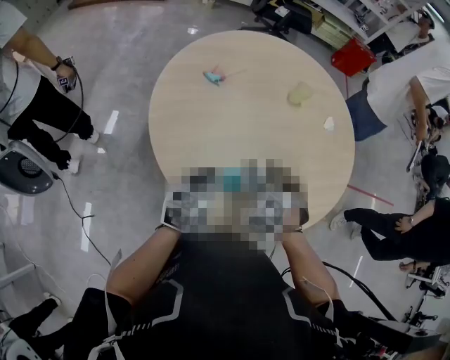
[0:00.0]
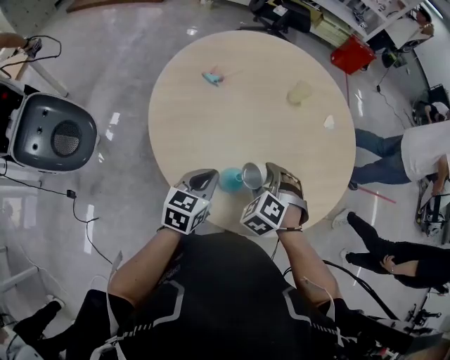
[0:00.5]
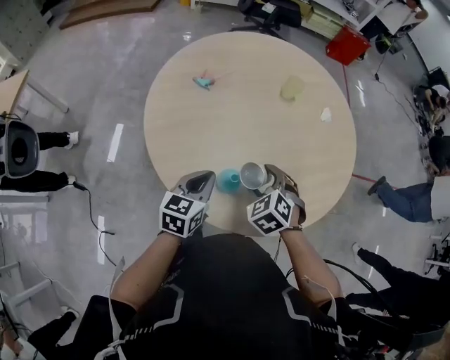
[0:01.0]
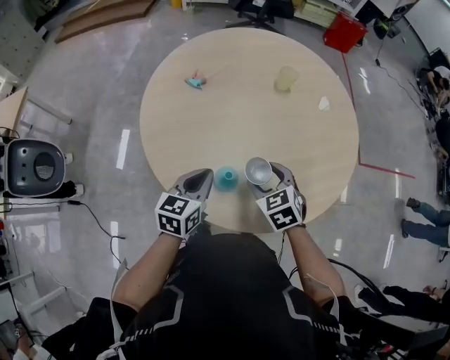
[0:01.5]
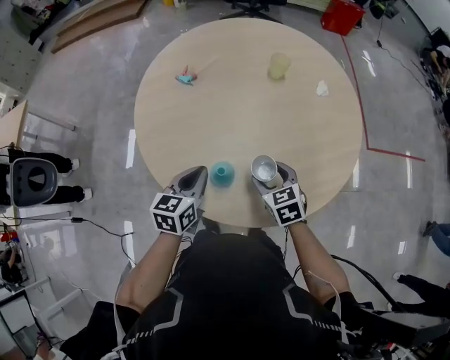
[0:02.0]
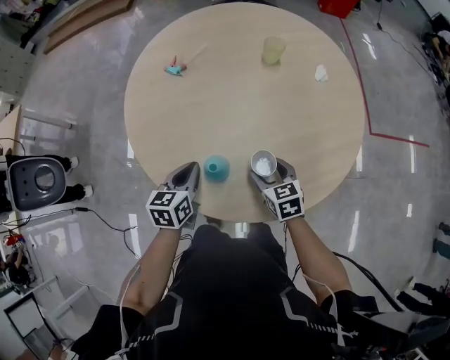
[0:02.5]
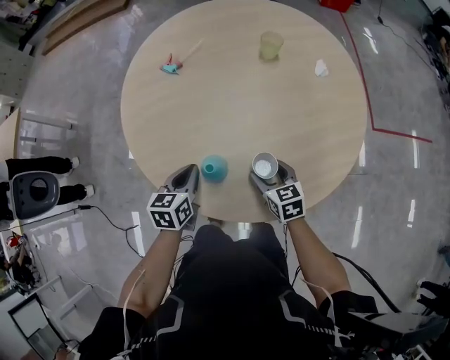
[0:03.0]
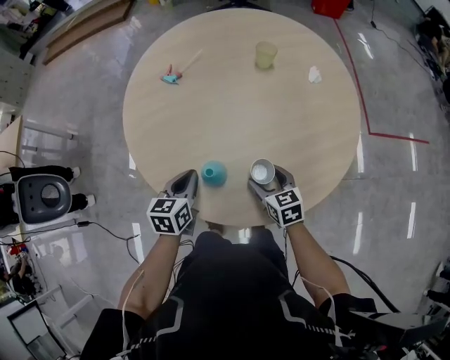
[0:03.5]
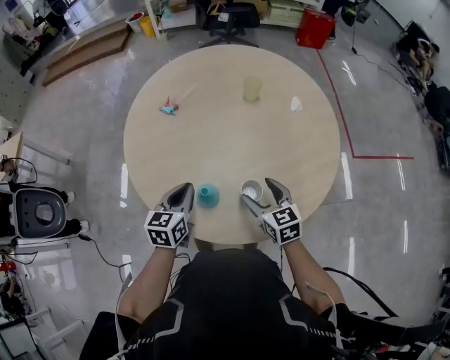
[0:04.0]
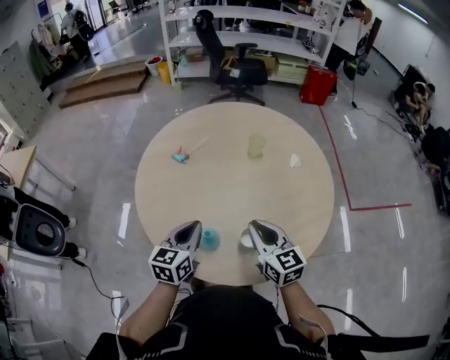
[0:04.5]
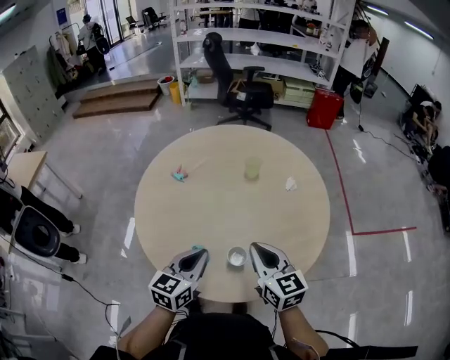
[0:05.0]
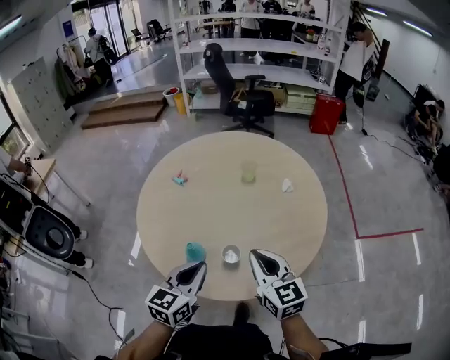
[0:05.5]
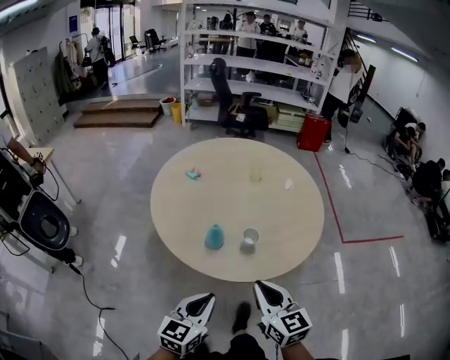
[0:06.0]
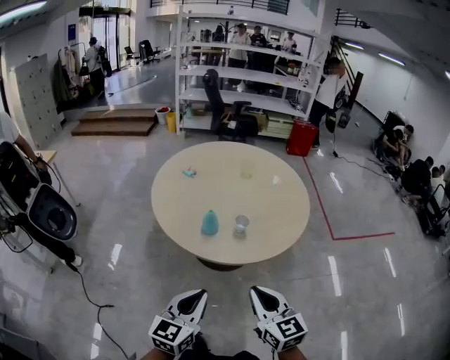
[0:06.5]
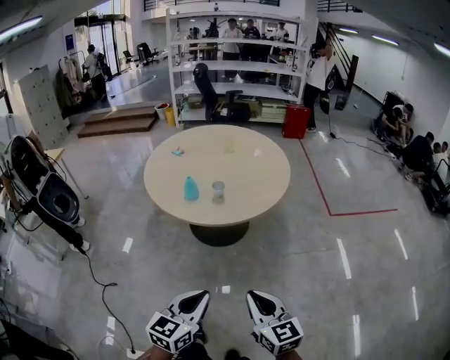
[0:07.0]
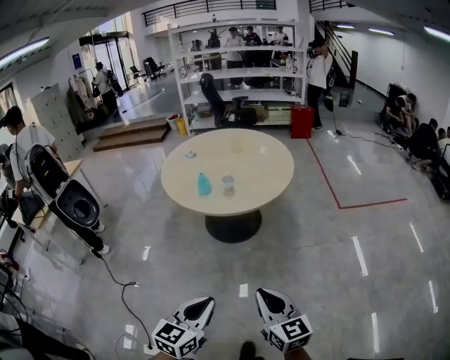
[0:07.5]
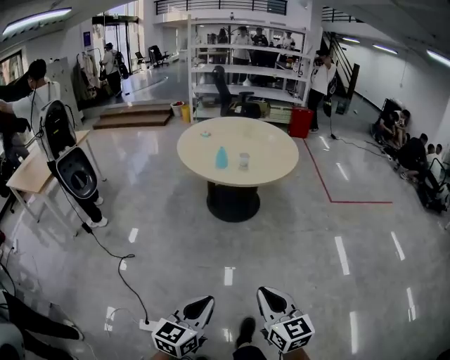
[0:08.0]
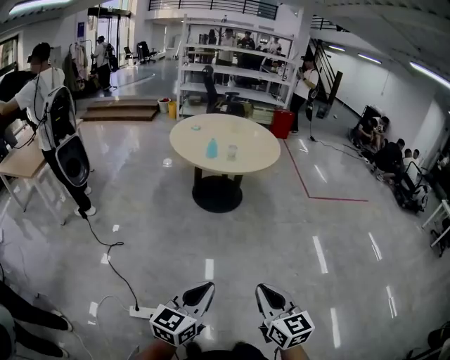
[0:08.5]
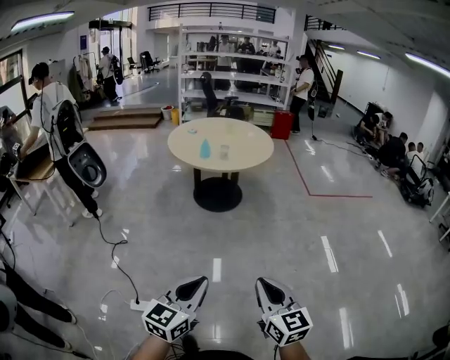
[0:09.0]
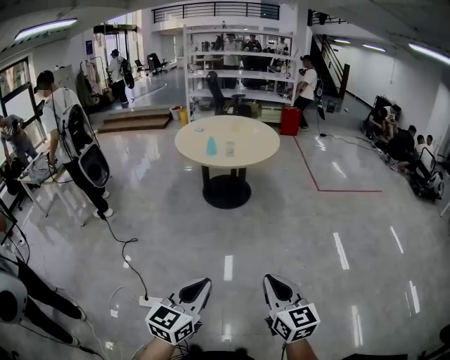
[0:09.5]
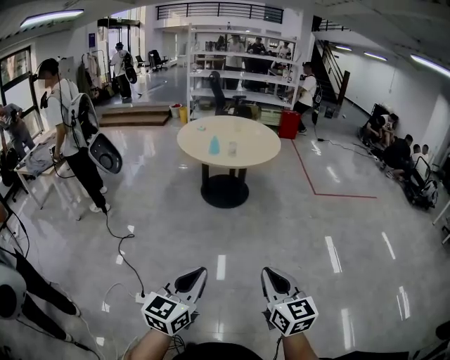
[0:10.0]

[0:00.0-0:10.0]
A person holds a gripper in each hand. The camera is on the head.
0:00.0 to 0:02.0: The right gripper is displaced to the right by about 5 cm, and rotates around the line of its fingers by approximately 50 degrees, clockwise from behind.
0:04.0 to 0:06.0: The left gripper moves backward, roughly 30 cm. The right gripper travels backward and upward by approximately 25 cm, and closes up.
0:06.0 to 0:08.0: The two grippers travel together, backward, approximately 60 cm.
0:08.0 to 0:10.0: The two grippers go roughly 25 cm backward and upward.

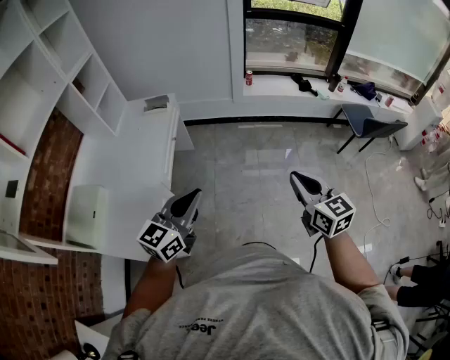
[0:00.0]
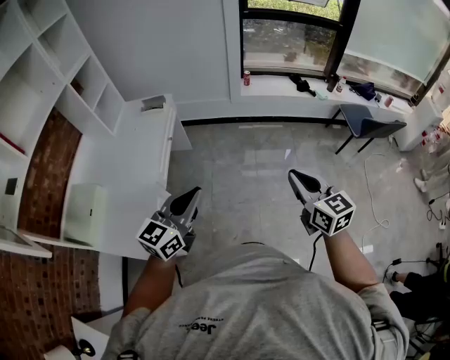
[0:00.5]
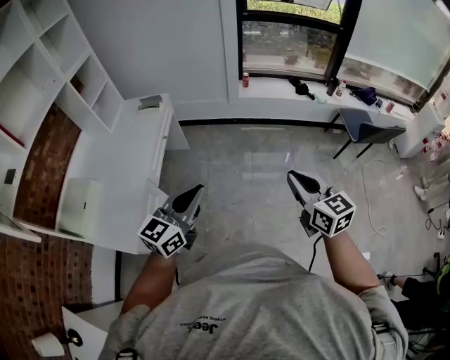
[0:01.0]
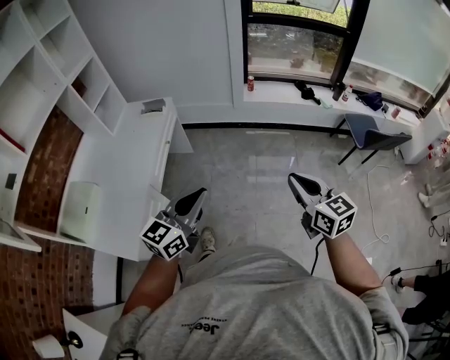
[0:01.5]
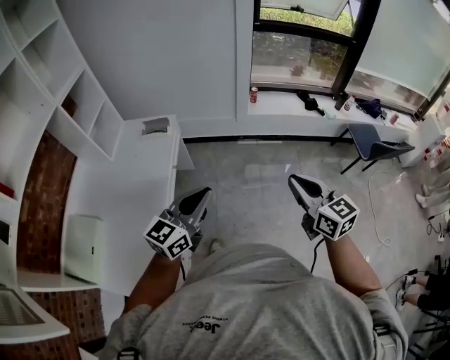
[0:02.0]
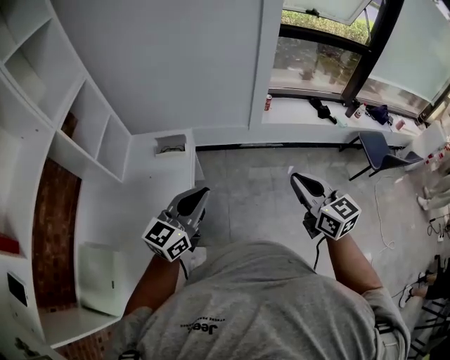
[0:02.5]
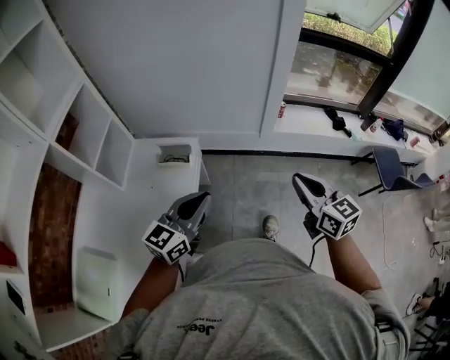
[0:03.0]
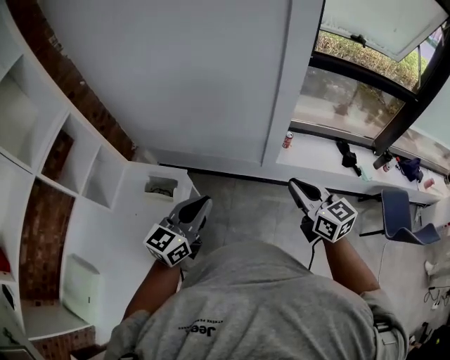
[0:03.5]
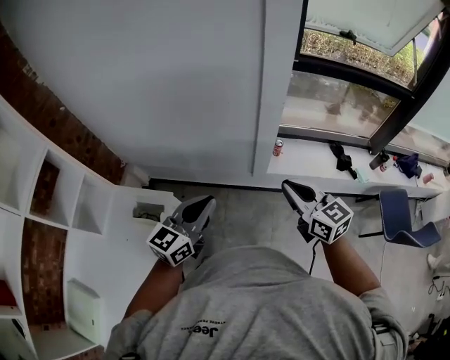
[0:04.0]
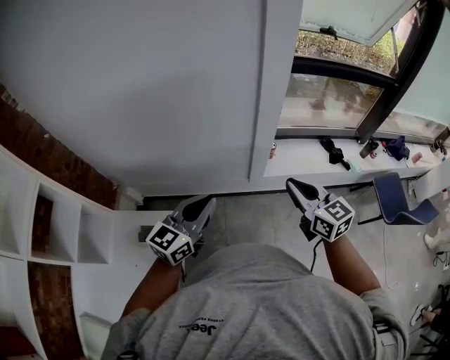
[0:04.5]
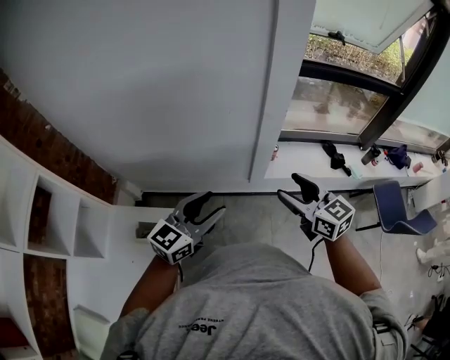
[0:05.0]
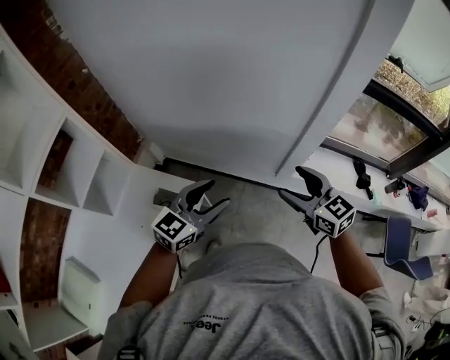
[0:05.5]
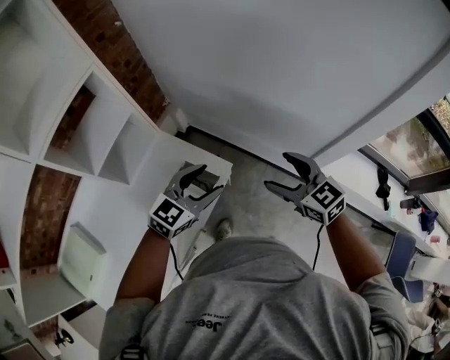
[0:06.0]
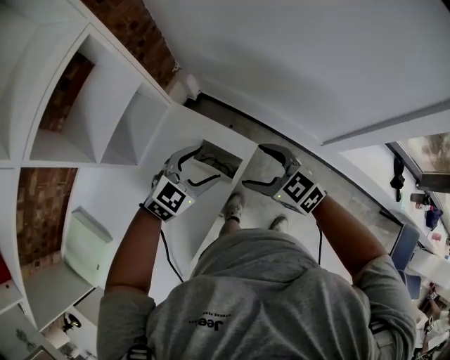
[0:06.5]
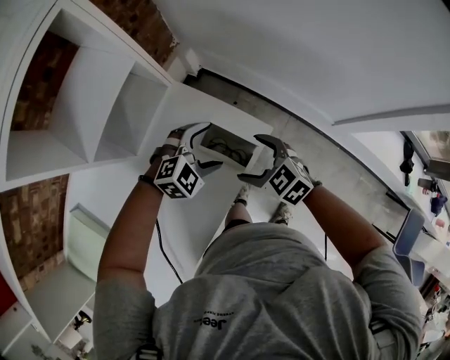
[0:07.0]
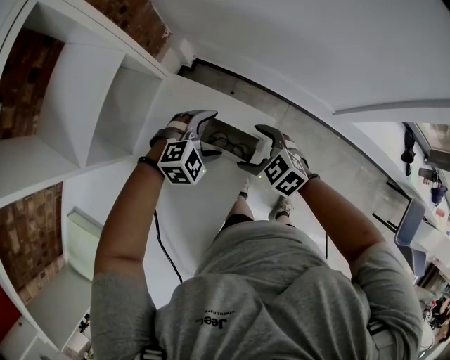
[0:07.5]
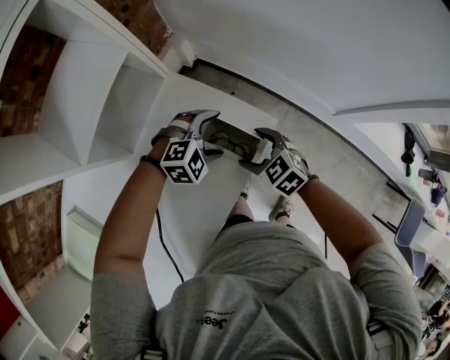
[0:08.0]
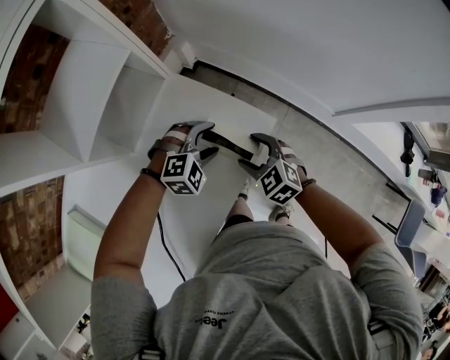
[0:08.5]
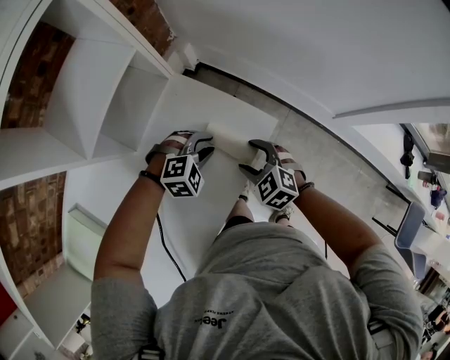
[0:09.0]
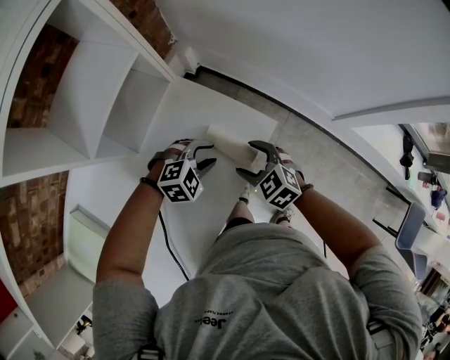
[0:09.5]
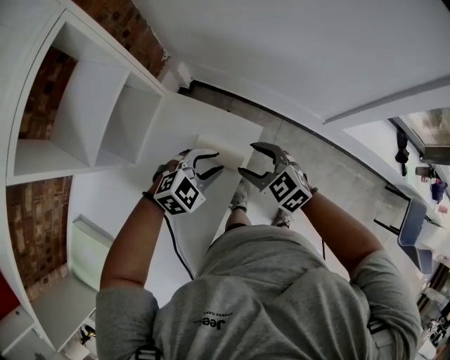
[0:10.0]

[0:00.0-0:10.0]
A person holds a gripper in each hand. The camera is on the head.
0:00.0 to 0:02.0: The grippers both shift forward by about 15 cm.
0:02.0 to 0:04.0: The pair of grippers is taken forward, roughly 50 cm.
0:04.0 to 0:06.0: The right gripper ends up approximately 30 cm from where it was, swivels roughly 40 degrees, and opens its fingers. The left gripper ends up some 25 cm from where it was, turns by some 20 degrees, and opens.
0:06.0 to 0:08.0: Both grippers move downward and to the left, about 30 cm. The left gripper points its fingers approximately 30 degrees further downward, and opens its fingers, while the right gripper changes its angle by some 30 degrees.
0:08.0 to 0:10.0: The left gripper goes roughly 10 cm upward and backward, and closes its fingers; the right gripper heads upward, covering some 10 cm.

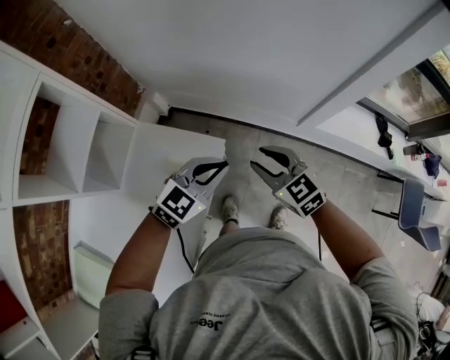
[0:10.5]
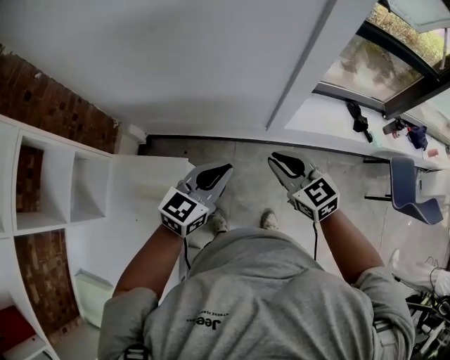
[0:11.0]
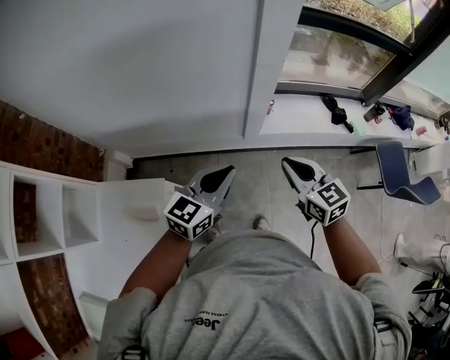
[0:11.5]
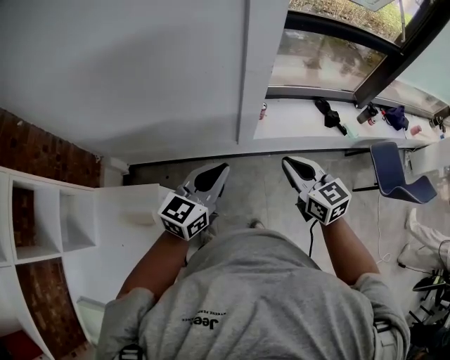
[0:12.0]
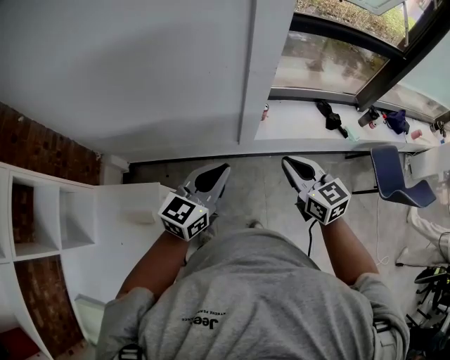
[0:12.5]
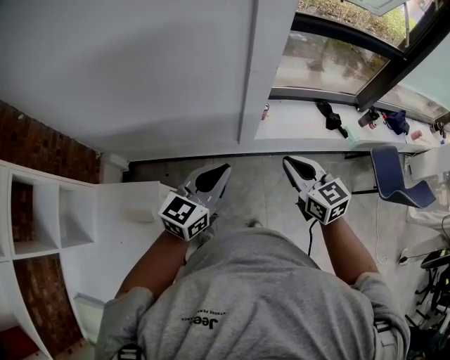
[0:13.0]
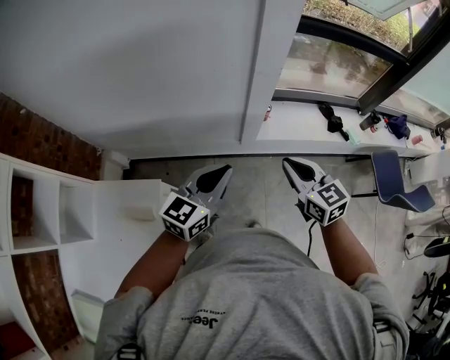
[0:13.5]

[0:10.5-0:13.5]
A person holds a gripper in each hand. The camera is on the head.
0:10.5 to 0:12.0: Both grippers move to the right, about 30 cm. The right gripper changes its angle by about 40 degrees. The left gripper rotates roughly 20 degrees.
0:12.0 to 0:13.5: The grippers move only a little.

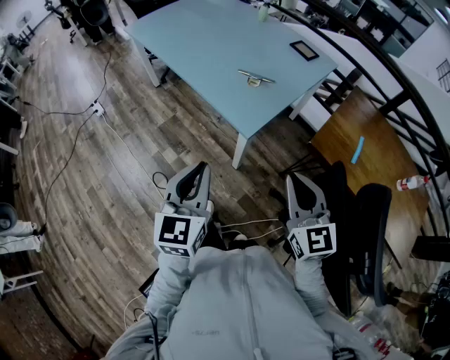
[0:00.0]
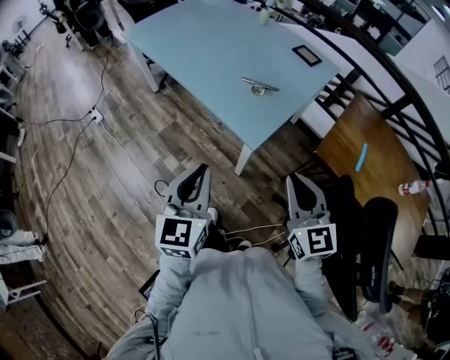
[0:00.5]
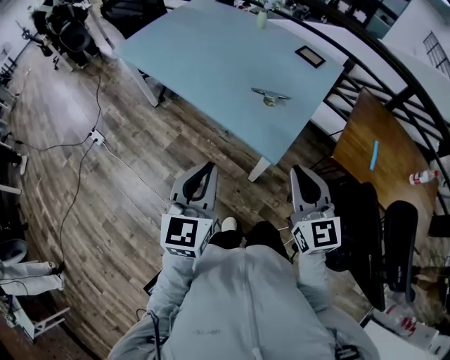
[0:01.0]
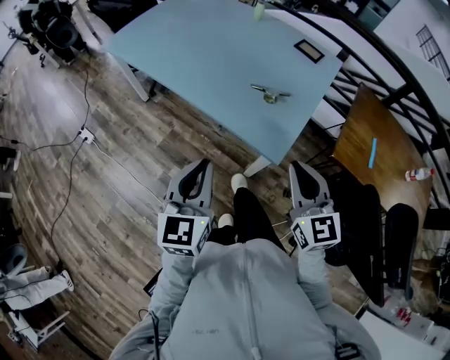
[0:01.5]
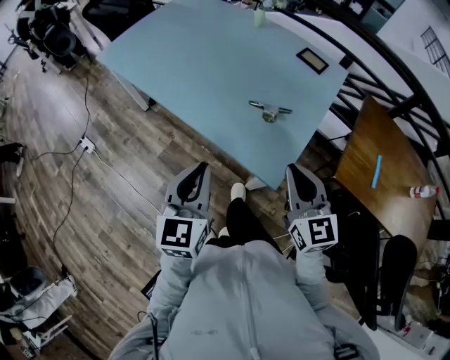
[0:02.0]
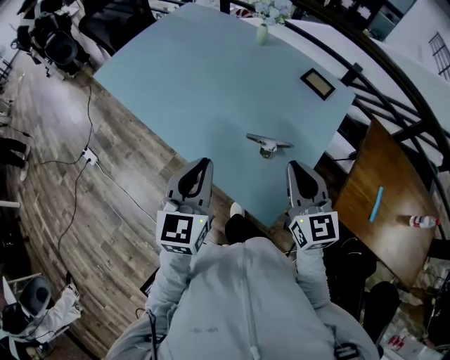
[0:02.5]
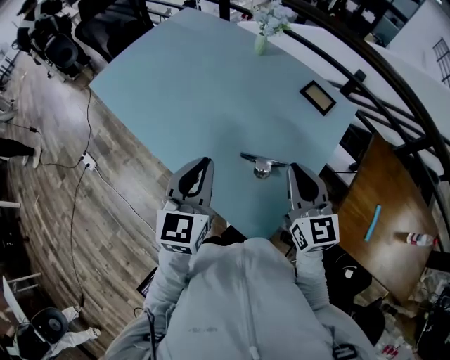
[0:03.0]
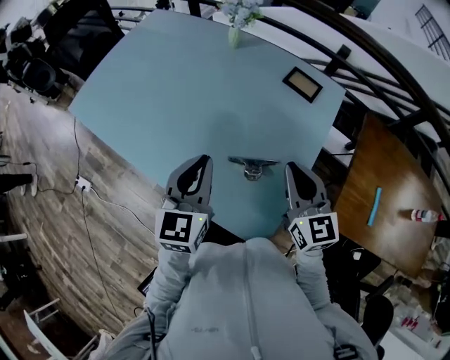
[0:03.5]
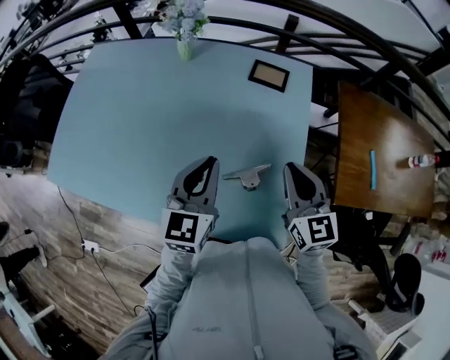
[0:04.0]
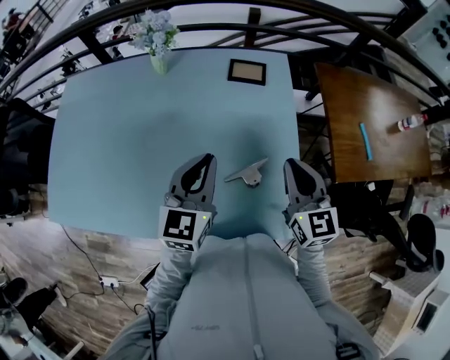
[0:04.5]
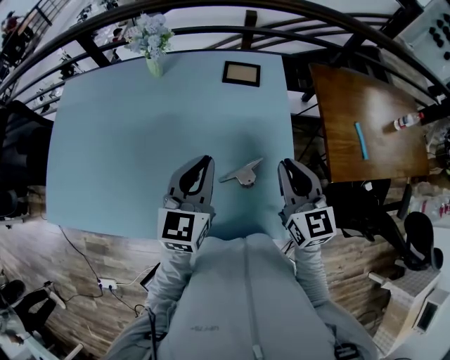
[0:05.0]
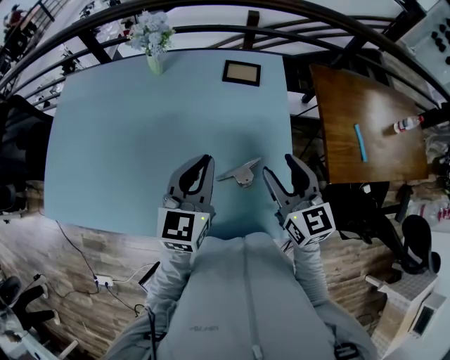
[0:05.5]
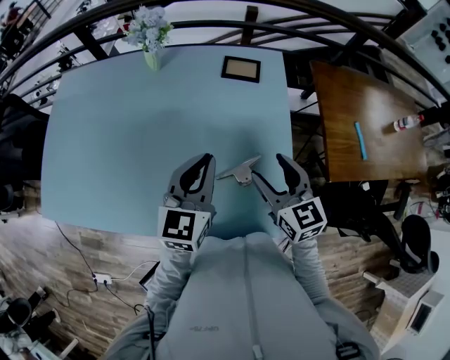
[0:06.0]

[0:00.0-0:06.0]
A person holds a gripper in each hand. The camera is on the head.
0:00.0 to 0:02.0: Both grippers travel together forward and to the left, roughly 25 cm.
0:02.0 to 0:04.0: The left gripper moves approximately 35 cm, and swivels about 30 degrees, while the right gripper ends up about 25 cm from where it was, and changes its angle by some 30 degrees.
0:04.0 to 0:06.0: The right gripper opens.
